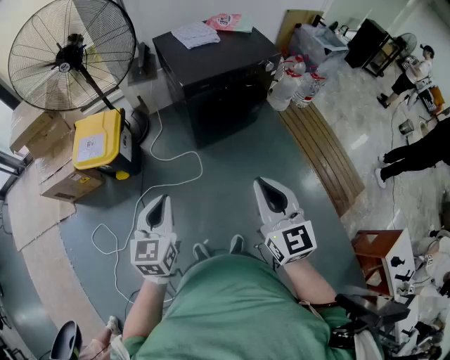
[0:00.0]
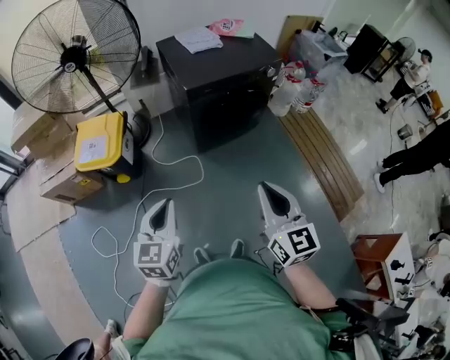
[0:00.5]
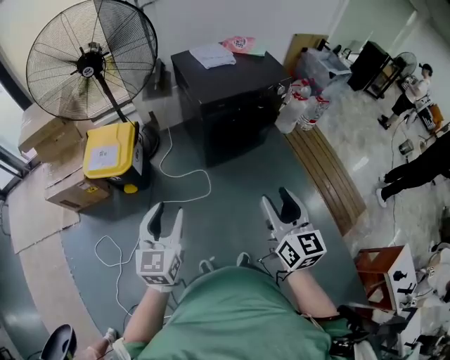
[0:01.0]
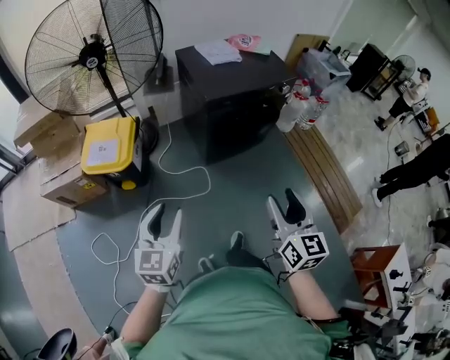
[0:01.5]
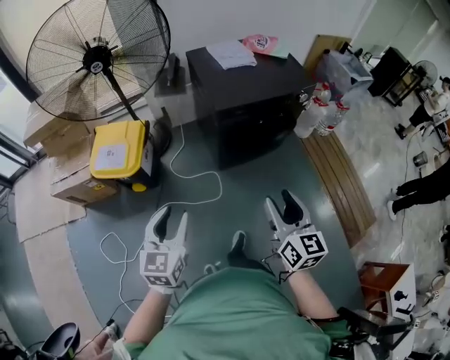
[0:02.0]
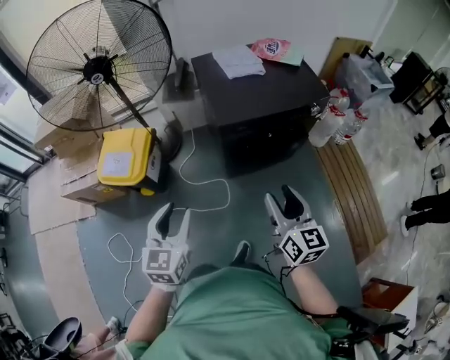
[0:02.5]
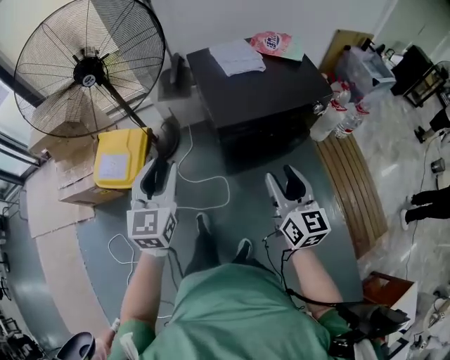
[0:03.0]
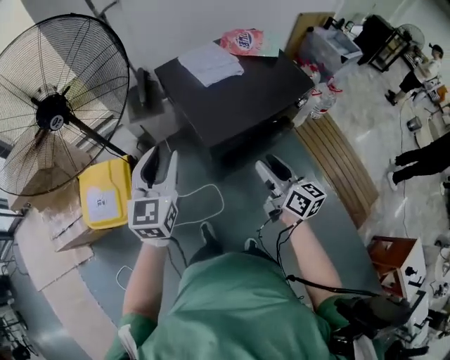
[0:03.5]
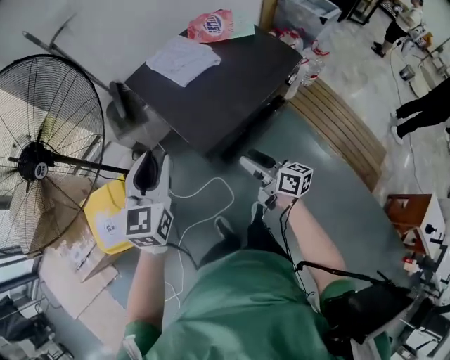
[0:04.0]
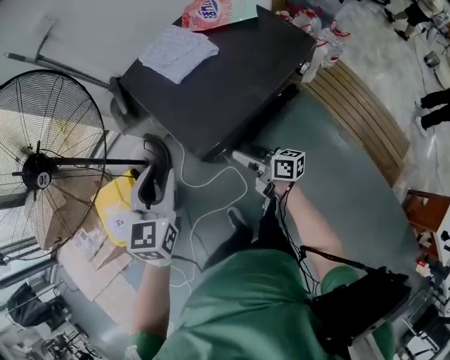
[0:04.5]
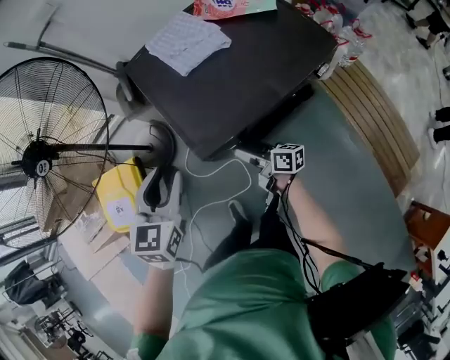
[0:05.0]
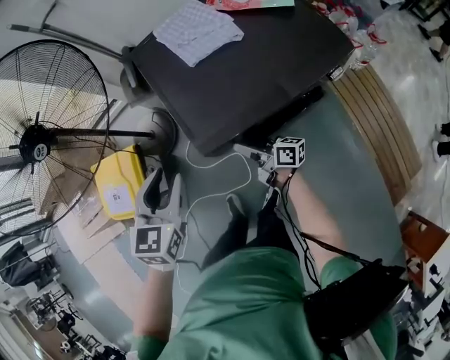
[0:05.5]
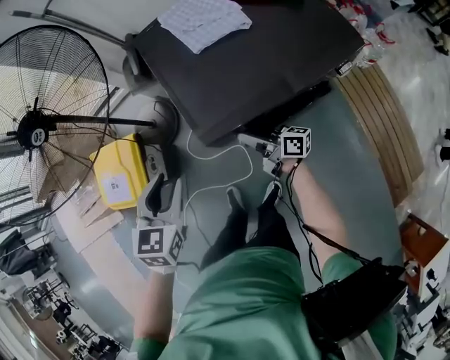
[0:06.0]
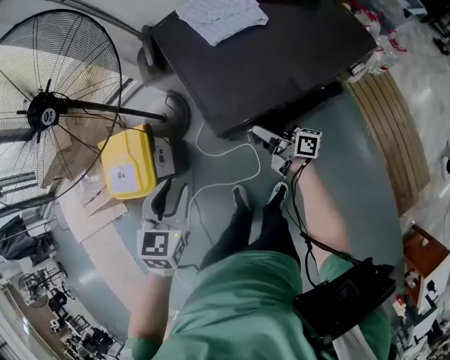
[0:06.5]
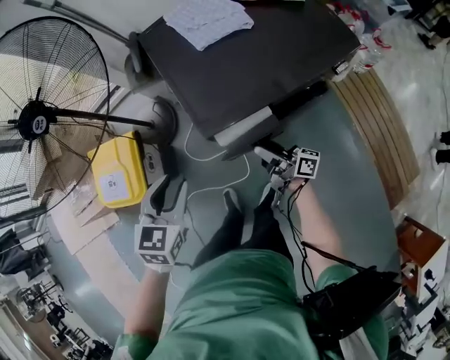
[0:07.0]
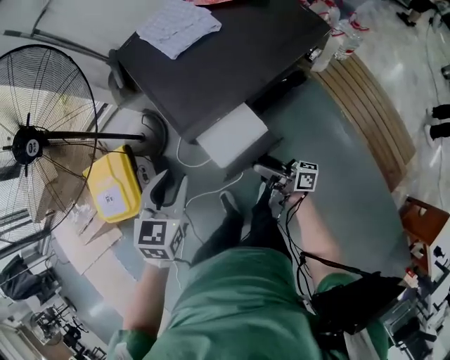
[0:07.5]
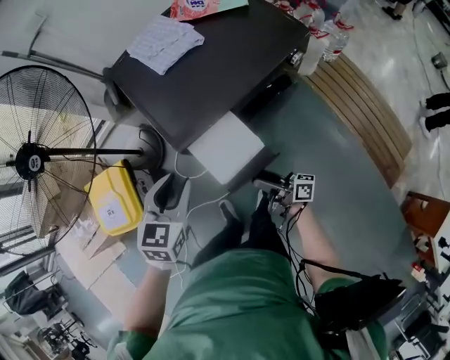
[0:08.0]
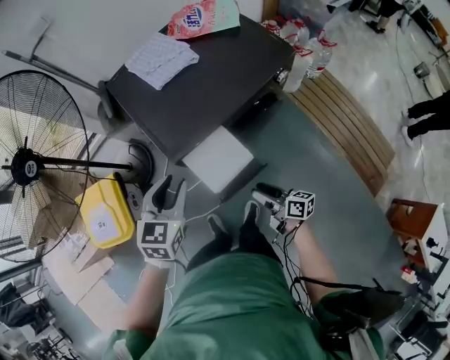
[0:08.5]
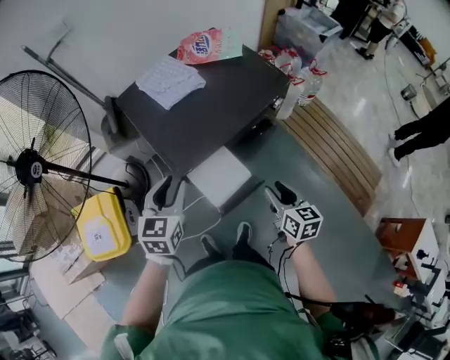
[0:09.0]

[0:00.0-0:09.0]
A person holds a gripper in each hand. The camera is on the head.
0:00.0 to 0:02.0: The right gripper moves forward and downward, roughly 10 cm, and opens; the left gripper heads to the left and forward, covering about 10 cm, and opens.
0:02.0 to 0:04.5: Both grippers are carried forward, roughly 50 cm. The right gripper shifts approximately 25 cm downward, and rotates around the line of its fingers by approximately 40 degrees, clockwise from behind. Meanwhile the left gripper swivels about 20 degrees.
0:04.5 to 0:07.0: The right gripper travels downward by about 5 cm, and rotates about 20 degrees. The left gripper shifts roughly 10 cm downward and backward.
0:07.0 to 0:09.0: The right gripper is displaced to the right, upward and backward by approximately 20 cm, and points its fingers some 40 degrees further downward; the left gripper travels to the right and upward by approximately 10 cm.

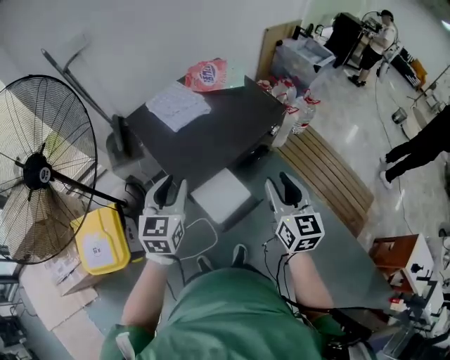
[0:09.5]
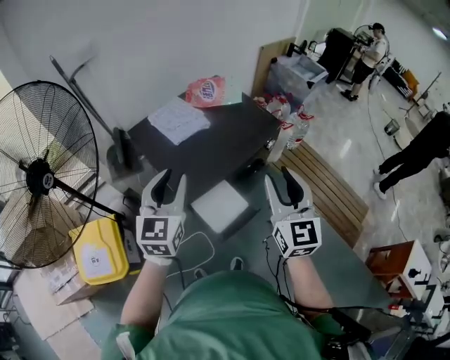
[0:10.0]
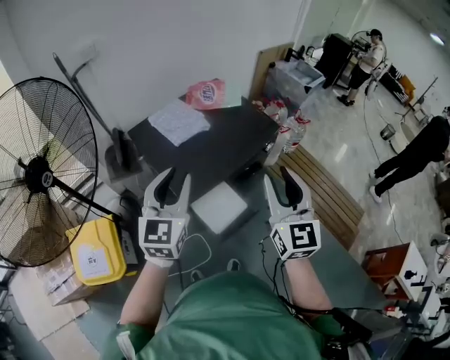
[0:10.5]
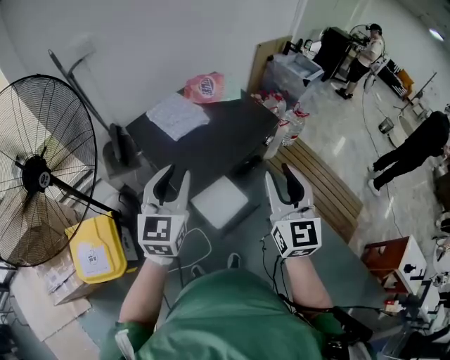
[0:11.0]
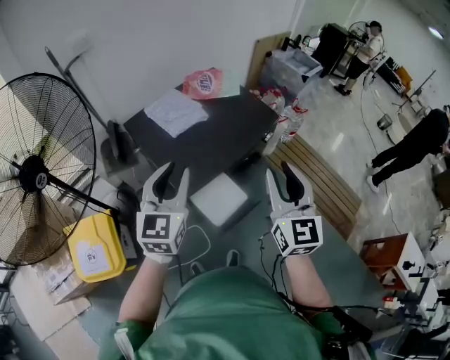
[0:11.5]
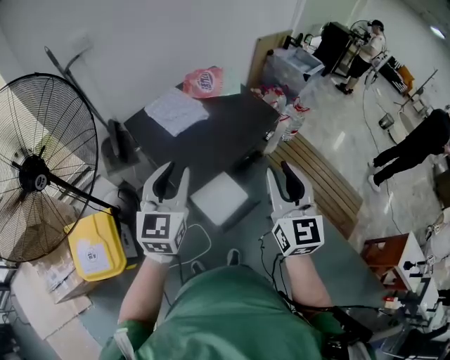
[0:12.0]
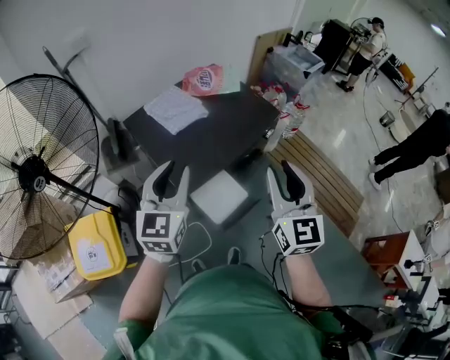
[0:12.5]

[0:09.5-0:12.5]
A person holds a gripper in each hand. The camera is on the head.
0:09.5 to 0:11.0: The grippers both shift upward by roughly 10 cm.
0:11.0 to 0:12.5: The grippers stay close to where they were, moving slightly.

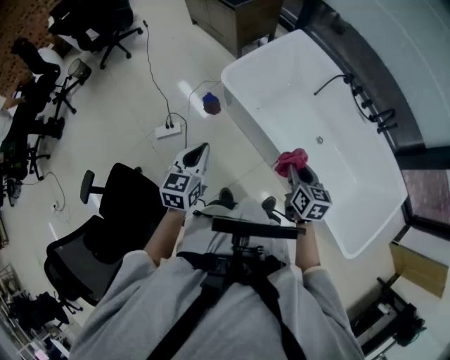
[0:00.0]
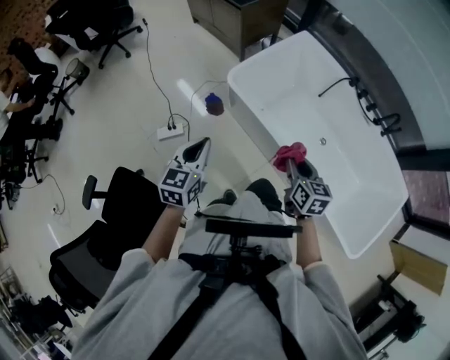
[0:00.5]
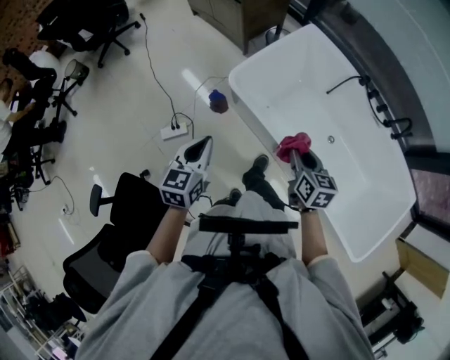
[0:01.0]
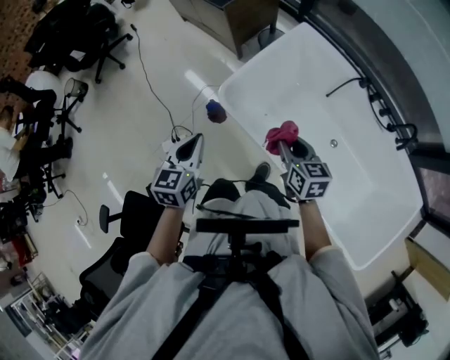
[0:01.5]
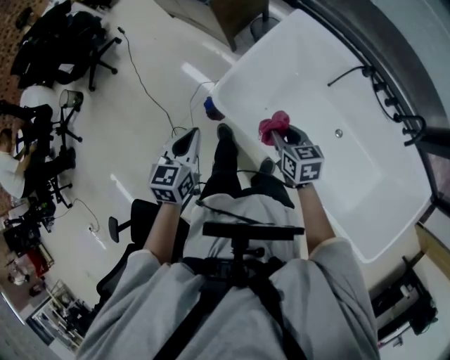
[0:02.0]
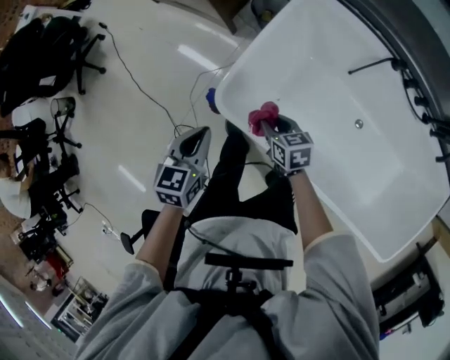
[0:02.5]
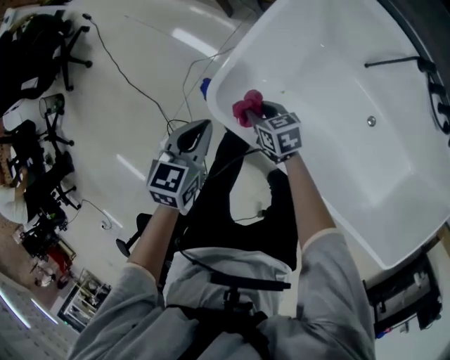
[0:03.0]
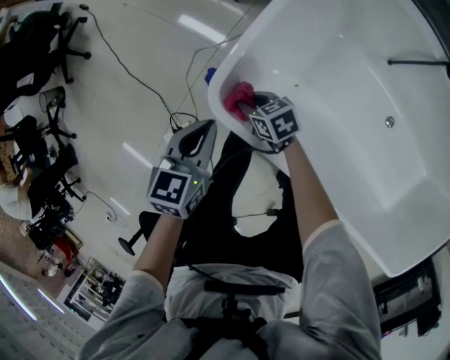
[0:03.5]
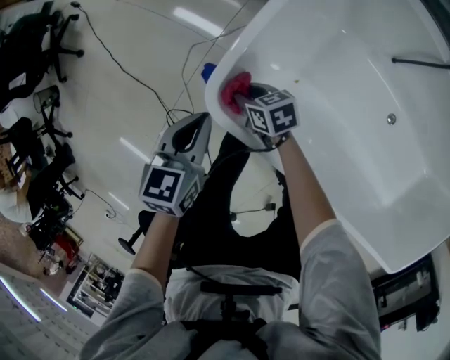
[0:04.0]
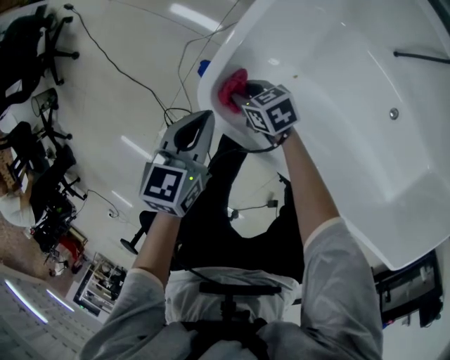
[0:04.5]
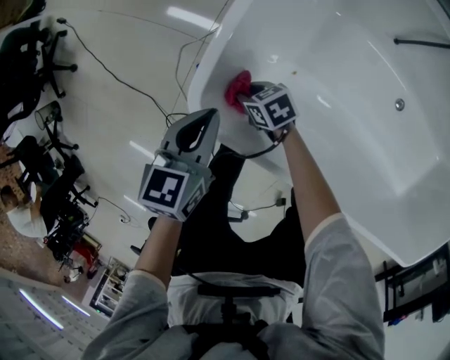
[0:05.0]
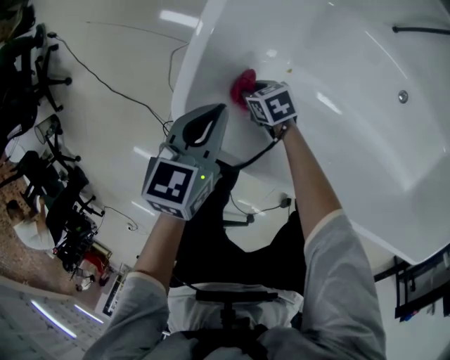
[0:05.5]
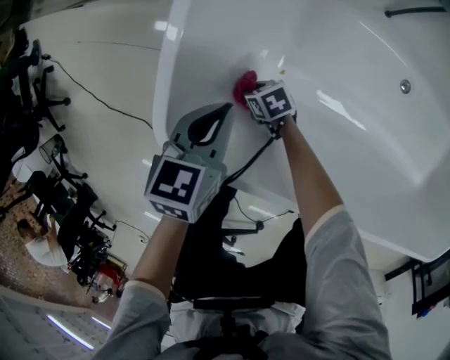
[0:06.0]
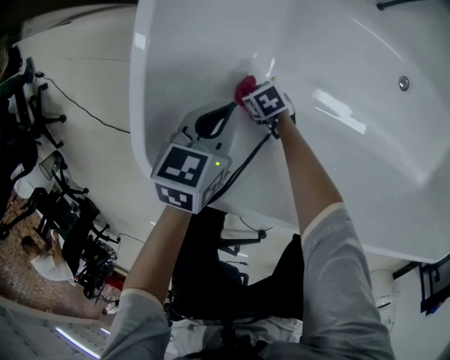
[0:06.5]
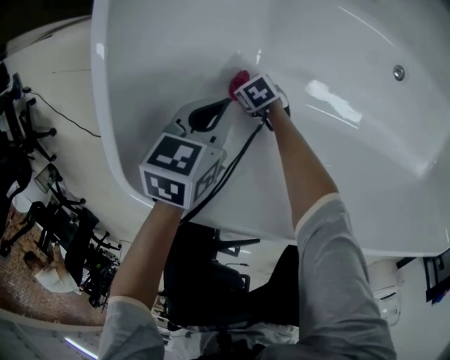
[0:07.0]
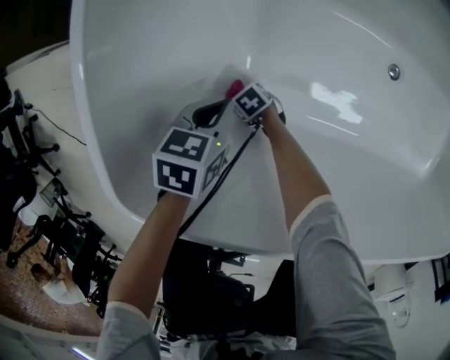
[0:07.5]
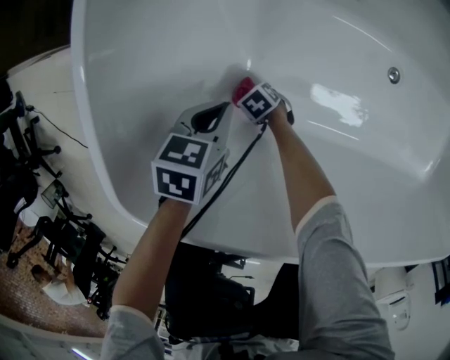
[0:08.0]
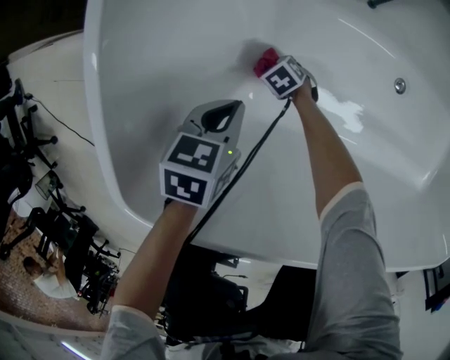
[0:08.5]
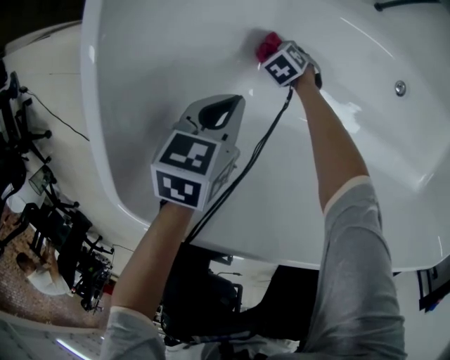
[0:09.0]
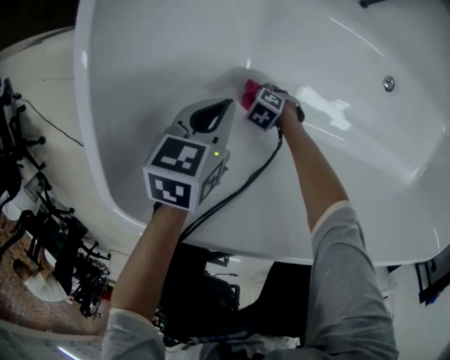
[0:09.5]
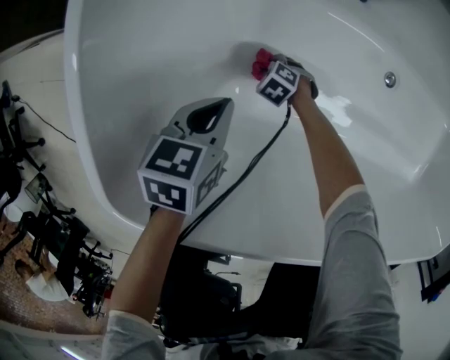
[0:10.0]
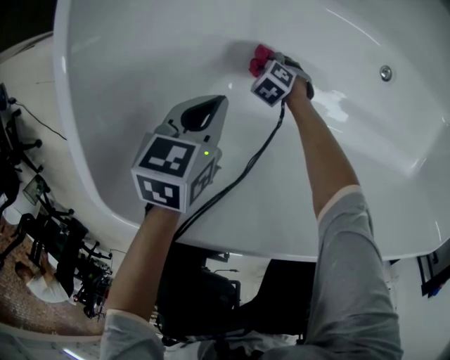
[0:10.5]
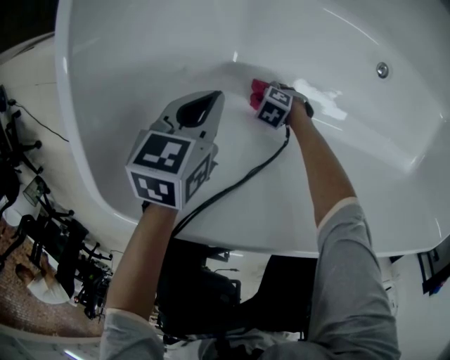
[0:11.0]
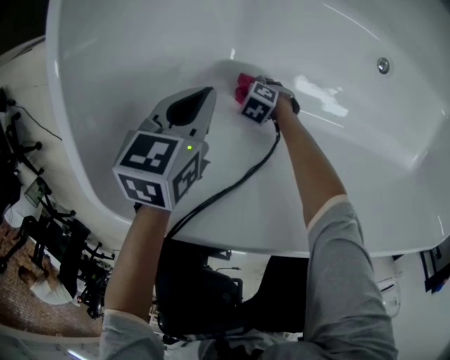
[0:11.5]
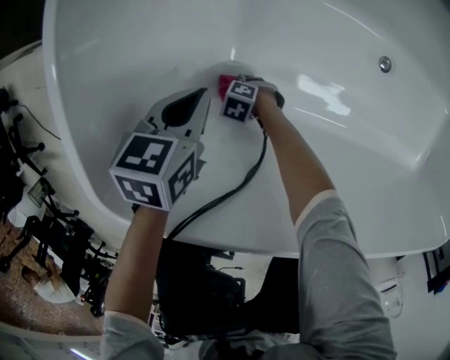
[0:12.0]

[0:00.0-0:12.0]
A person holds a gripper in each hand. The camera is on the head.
0:00.0 to 0:02.0: The two grippers go approximately 30 cm forward.
0:02.0 to 0:04.0: The right gripper goes about 40 cm downward, forward and to the left, and swivels some 30 degrees. The left gripper travels downward and forward by approximately 30 cm.
0:04.0 to 0:06.0: The left gripper goes approximately 15 cm to the right and downward, and changes its angle by about 20 degrees. The right gripper goes roughly 20 cm downward.
0:06.0 to 0:08.0: The two grippers go approximately 15 cm downward.
0:08.0 to 0:10.0: The right gripper changes place by roughly 10 cm, and turns by roughly 30 degrees.
0:10.0 to 0:12.0: The right gripper shifts by some 15 cm.

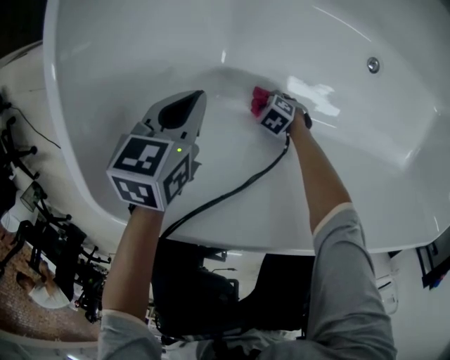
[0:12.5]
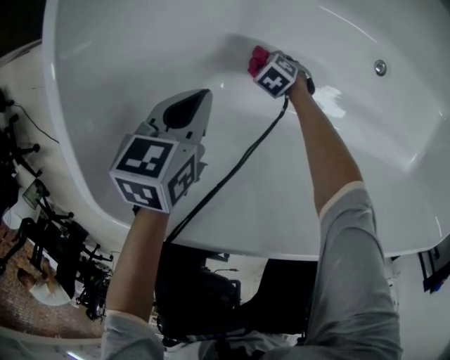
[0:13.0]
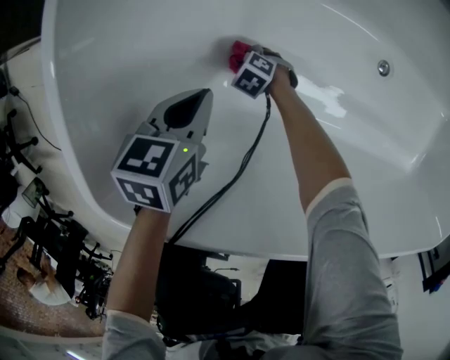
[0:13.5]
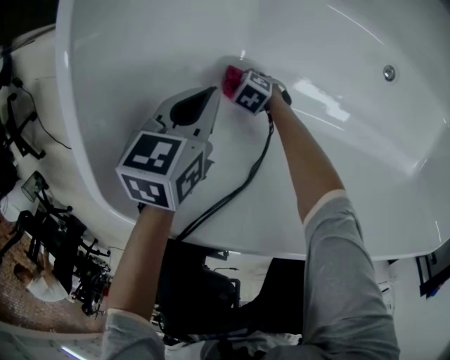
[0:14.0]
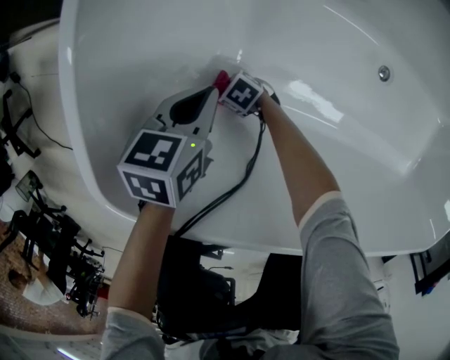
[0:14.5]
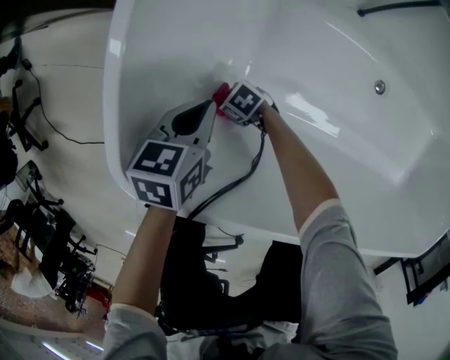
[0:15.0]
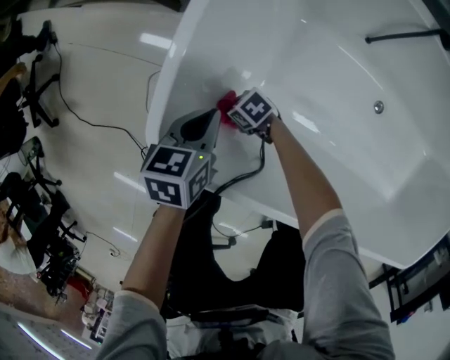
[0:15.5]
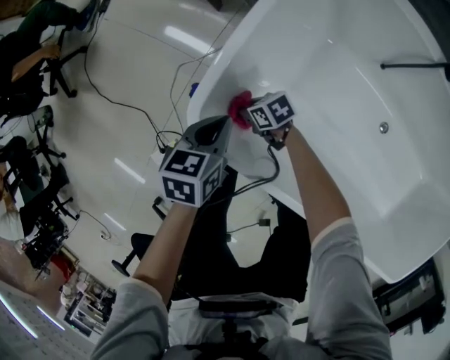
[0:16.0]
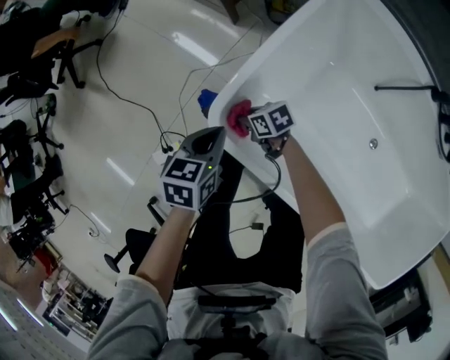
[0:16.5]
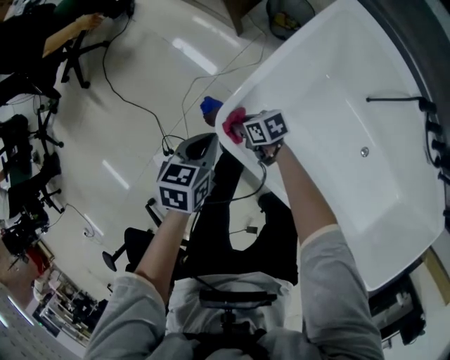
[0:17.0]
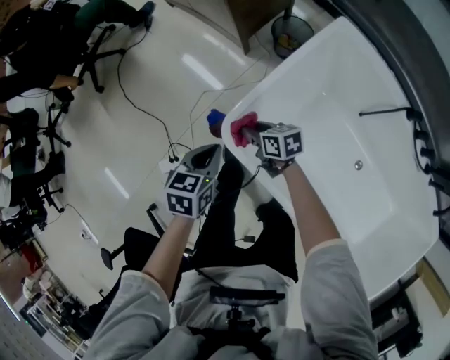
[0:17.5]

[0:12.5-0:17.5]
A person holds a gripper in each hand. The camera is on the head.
0:12.5 to 0:15.0: The right gripper changes place by about 20 cm, and changes its angle by some 30 degrees.
0:15.0 to 0:17.5: Both grippers travel together upward, some 30 cm. The left gripper swivels some 30 degrees.
